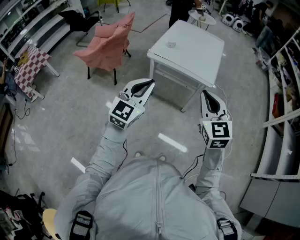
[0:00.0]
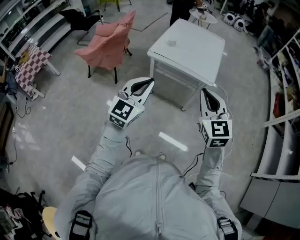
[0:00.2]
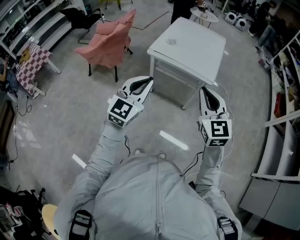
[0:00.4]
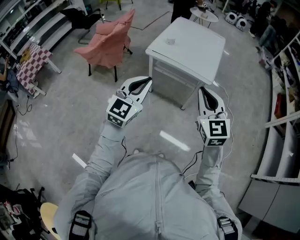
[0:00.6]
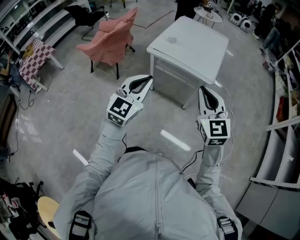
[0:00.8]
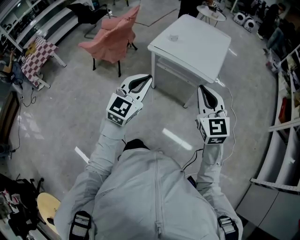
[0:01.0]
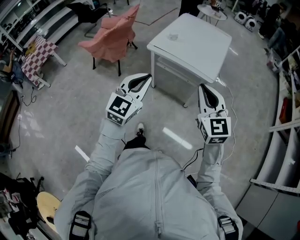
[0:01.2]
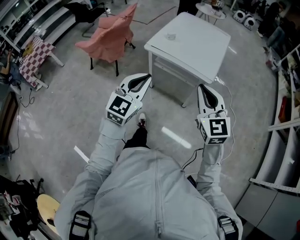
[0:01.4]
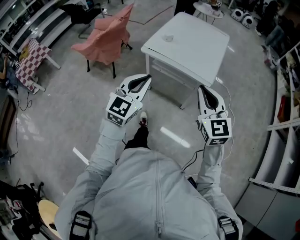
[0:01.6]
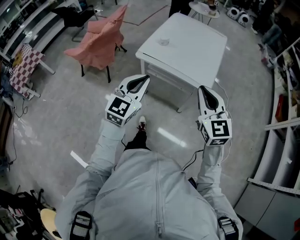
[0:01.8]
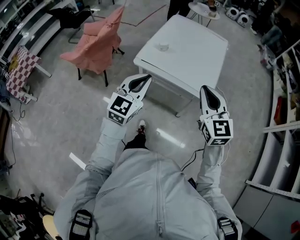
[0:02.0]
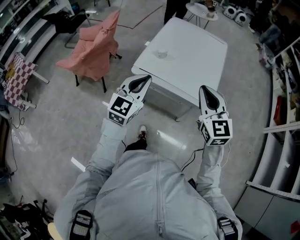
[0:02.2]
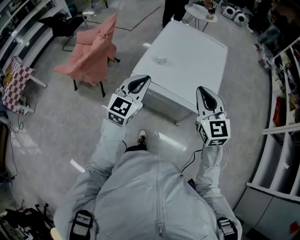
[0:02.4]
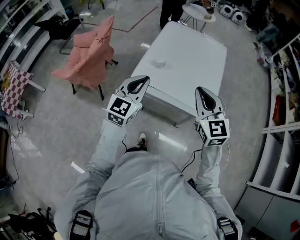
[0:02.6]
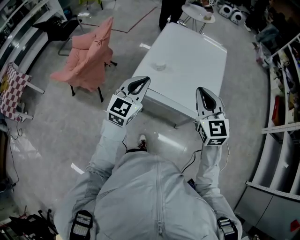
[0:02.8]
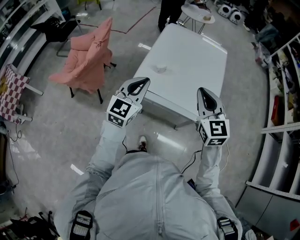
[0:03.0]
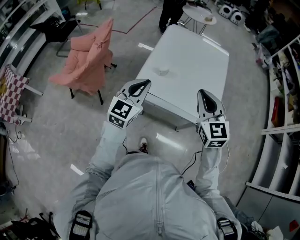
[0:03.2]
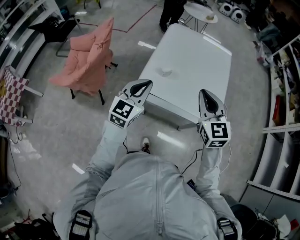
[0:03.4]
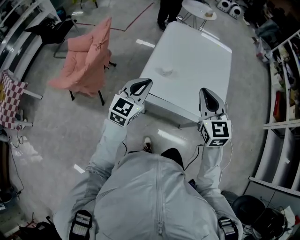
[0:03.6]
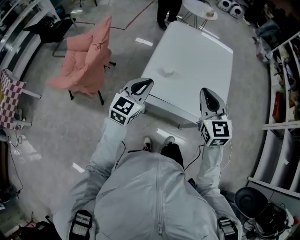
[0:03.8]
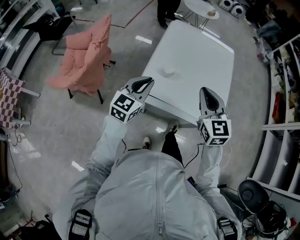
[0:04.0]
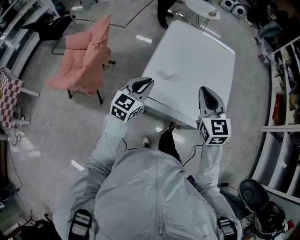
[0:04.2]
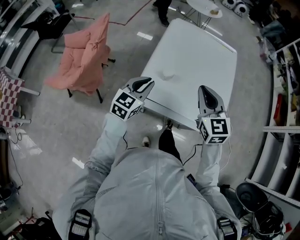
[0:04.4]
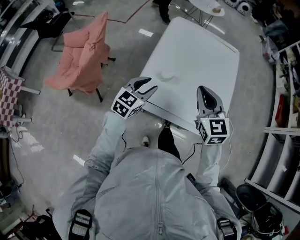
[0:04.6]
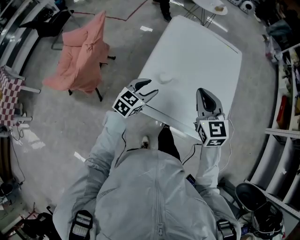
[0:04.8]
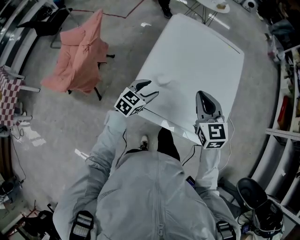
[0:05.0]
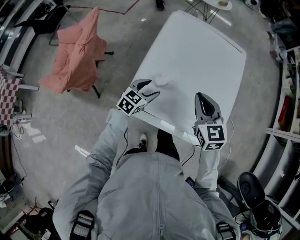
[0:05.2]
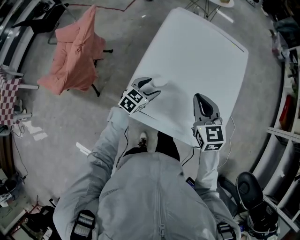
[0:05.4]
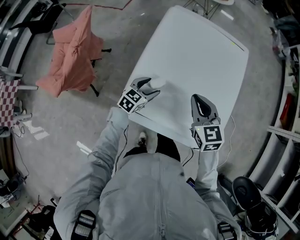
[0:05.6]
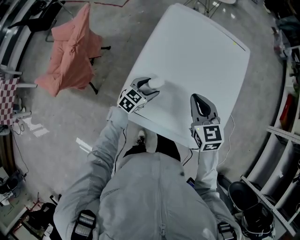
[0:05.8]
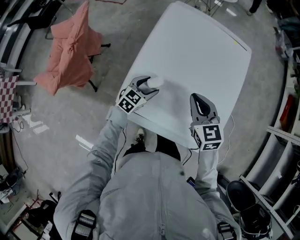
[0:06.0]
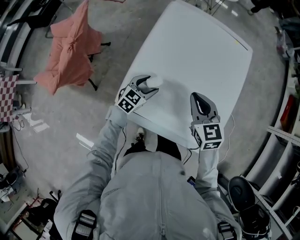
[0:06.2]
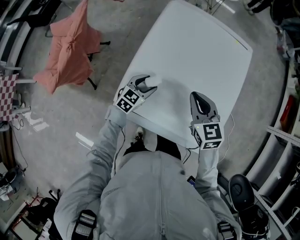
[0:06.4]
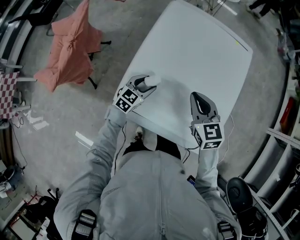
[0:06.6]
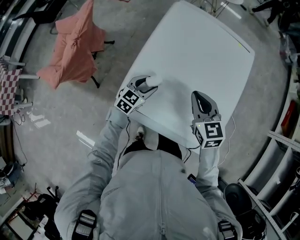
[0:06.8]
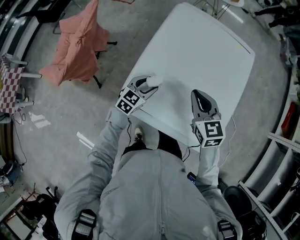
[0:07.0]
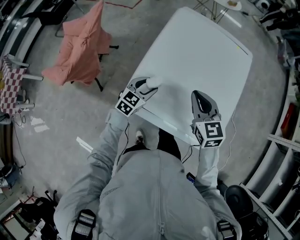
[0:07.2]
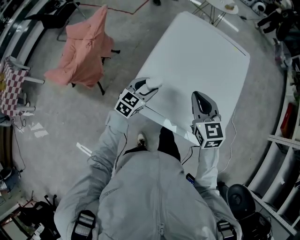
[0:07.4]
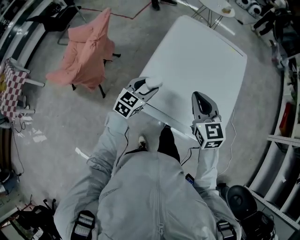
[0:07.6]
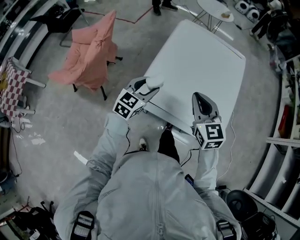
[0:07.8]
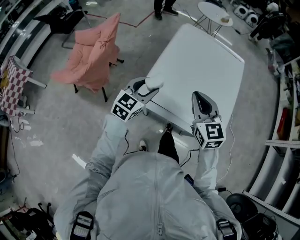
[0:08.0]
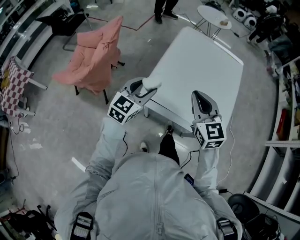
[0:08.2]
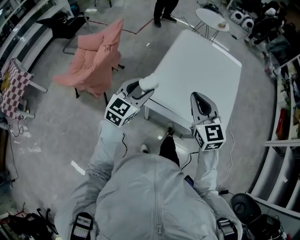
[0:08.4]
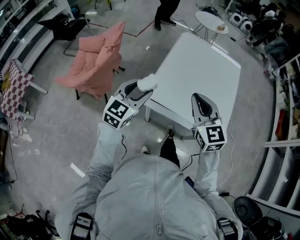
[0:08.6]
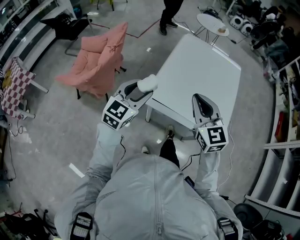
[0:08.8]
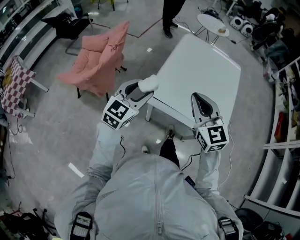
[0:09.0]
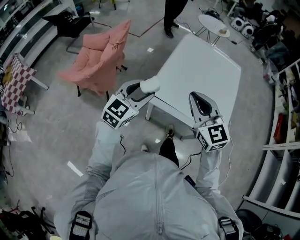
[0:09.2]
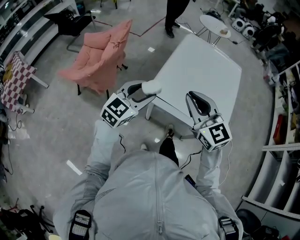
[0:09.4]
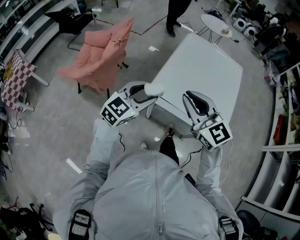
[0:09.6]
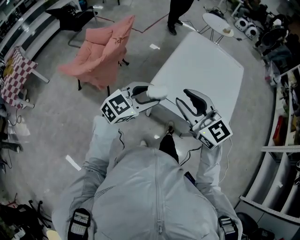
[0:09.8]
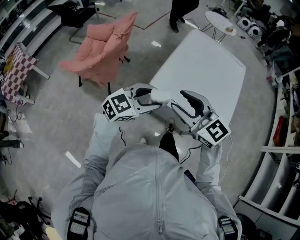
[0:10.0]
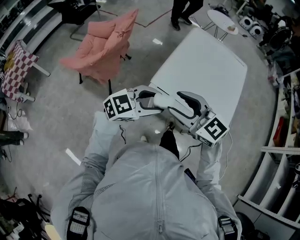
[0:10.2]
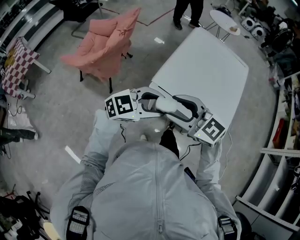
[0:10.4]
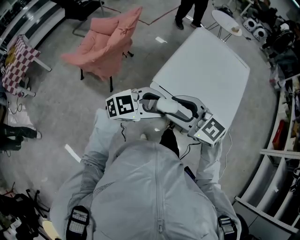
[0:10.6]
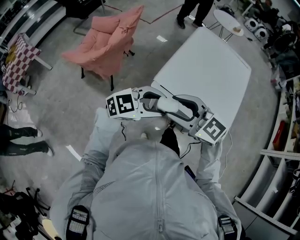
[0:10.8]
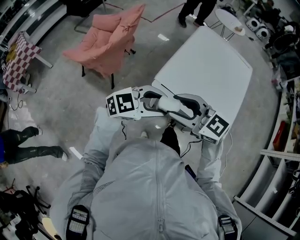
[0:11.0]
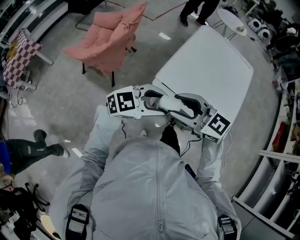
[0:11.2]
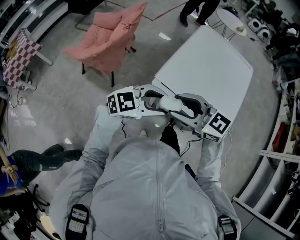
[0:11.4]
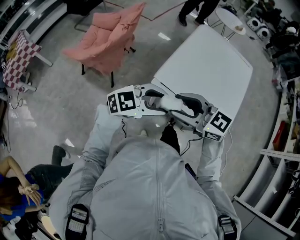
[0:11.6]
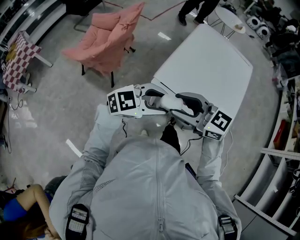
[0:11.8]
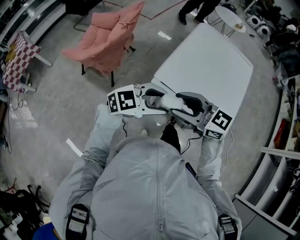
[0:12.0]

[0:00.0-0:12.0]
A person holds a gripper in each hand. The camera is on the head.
0:00.0 to 0:01.6: Both grippers move forward and to the right, about 15 cm.
0:01.6 to 0:03.0: The two grippers travel together, forward, about 40 cm.
0:03.0 to 0:04.4: The right gripper shifts roughly 15 cm forward and to the left, while the left gripper travels forward, downward and to the left by roughly 20 cm.
0:04.4 to 0:06.0: The right gripper moves forward and downward, some 25 cm. Meanwhile the left gripper shifts about 30 cm downward and forward, and opens its fingers.
0:06.0 to 0:07.6: The right gripper moves backward and upward, roughly 15 cm. Meanwhile the left gripper moves upward, backward and to the left, some 20 cm.
0:07.6 to 0:09.0: Both grippers move backward, upward and to the left, roughly 25 cm.
0:09.0 to 0:10.4: The right gripper changes place by approximately 15 cm, rotates about 40 degrees, and opens up. The left gripper moves approximately 10 cm, and changes its angle by about 40 degrees.
0:10.4 to 0:12.0: The grippers move only a little.

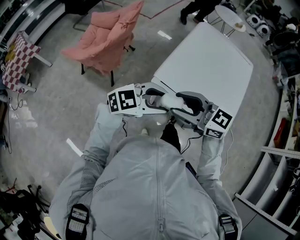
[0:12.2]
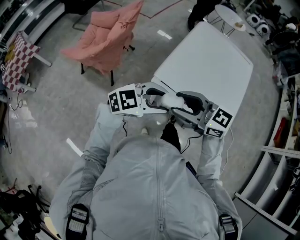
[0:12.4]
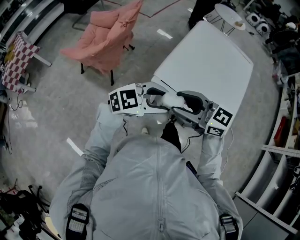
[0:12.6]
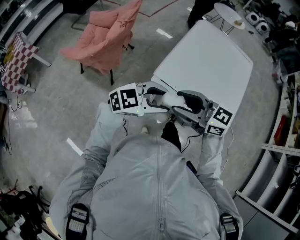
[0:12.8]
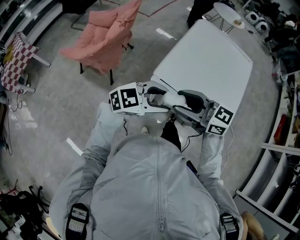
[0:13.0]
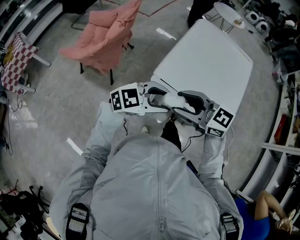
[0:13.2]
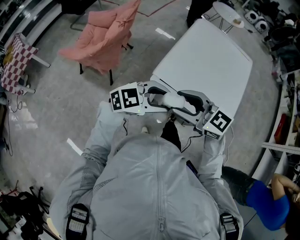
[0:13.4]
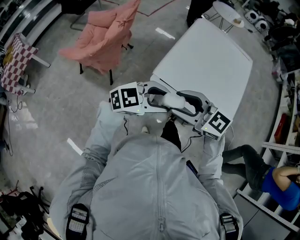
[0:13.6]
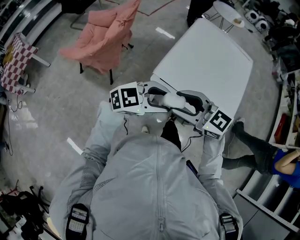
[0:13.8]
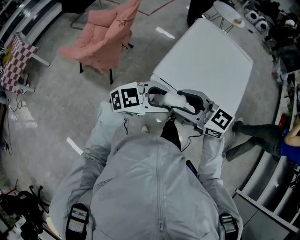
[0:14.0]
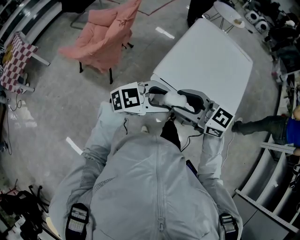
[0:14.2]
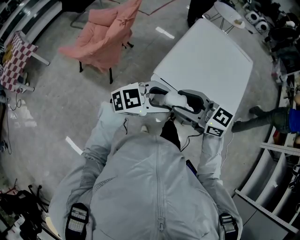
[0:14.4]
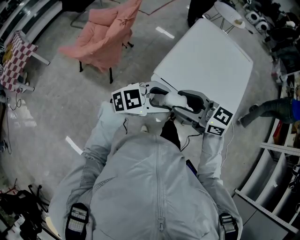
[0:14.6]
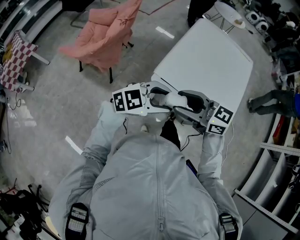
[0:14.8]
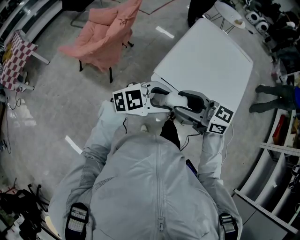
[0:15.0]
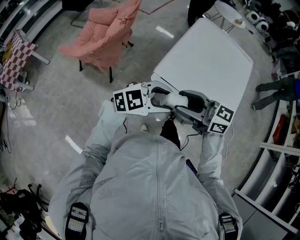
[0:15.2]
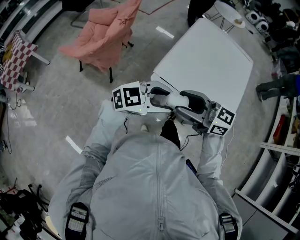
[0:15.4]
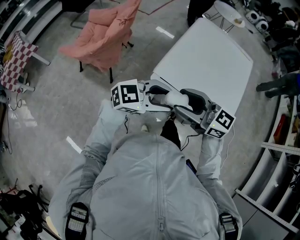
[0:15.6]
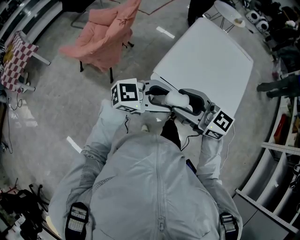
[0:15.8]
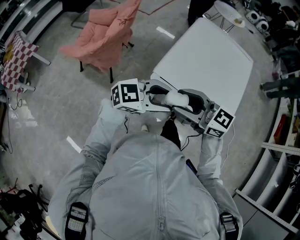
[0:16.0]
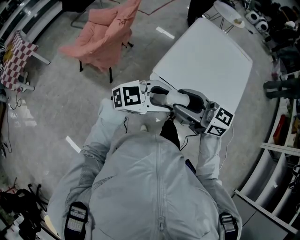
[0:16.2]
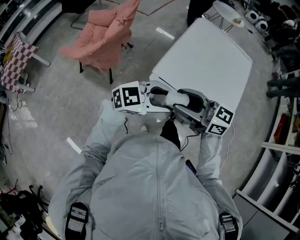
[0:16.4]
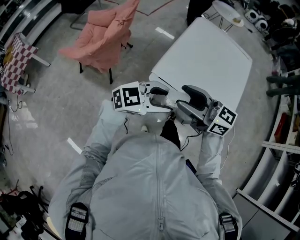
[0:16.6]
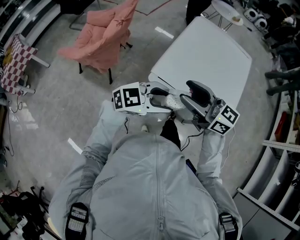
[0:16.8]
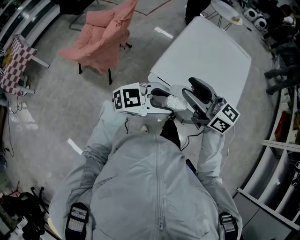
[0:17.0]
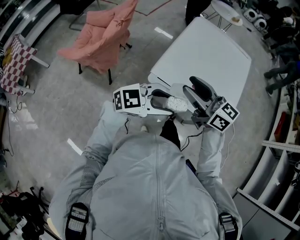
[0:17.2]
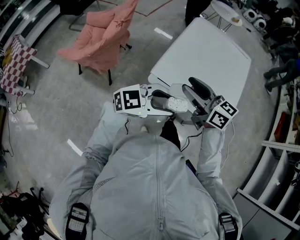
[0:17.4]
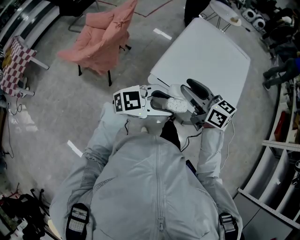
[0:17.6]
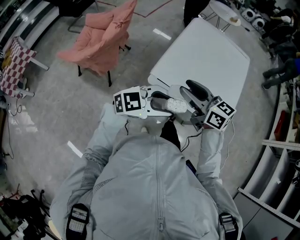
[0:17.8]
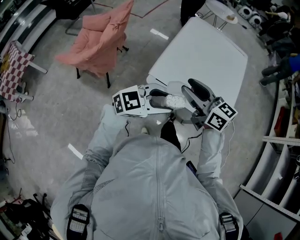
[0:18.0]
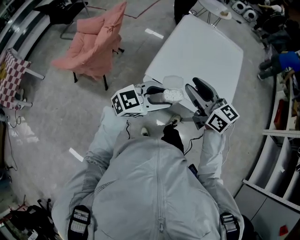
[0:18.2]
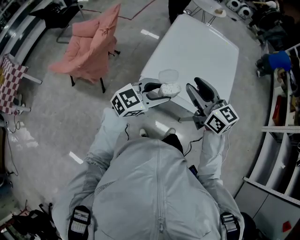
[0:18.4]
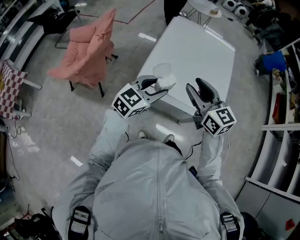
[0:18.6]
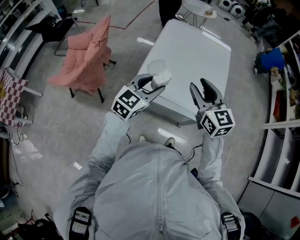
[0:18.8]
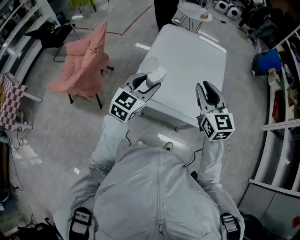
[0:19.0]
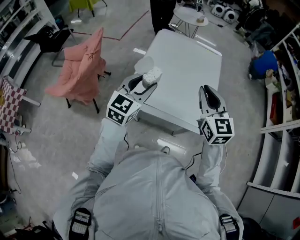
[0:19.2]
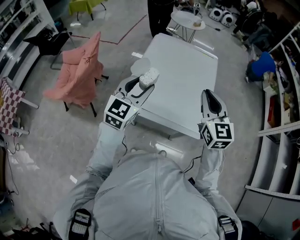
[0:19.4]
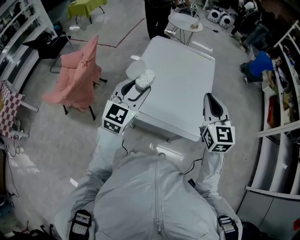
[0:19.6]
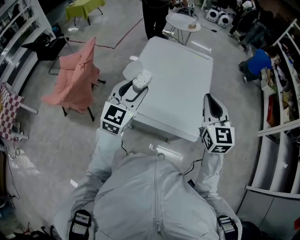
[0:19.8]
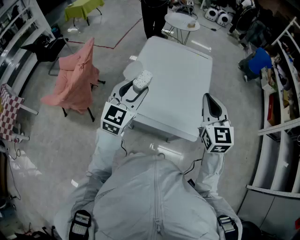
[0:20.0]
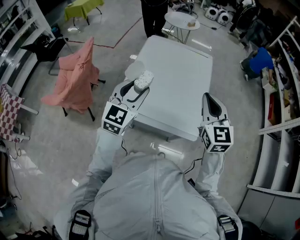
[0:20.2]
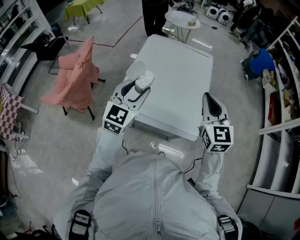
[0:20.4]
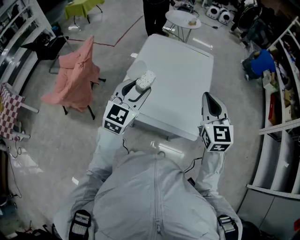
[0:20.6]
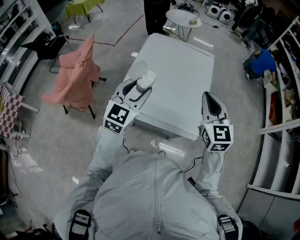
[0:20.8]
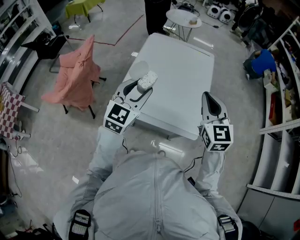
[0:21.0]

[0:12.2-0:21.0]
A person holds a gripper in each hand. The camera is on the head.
0:12.2 to 0:13.6: The grippers stay close to where they were, moving slightly.
0:13.6 to 0:15.2: The right gripper swivels about 20 degrees.
0:15.2 to 0:16.6: The grippers stay close to where they were, moving slightly.
0:16.6 to 0:18.0: The right gripper changes place by about 5 cm, and changes its angle by about 20 degrees.
0:18.0 to 0:19.6: The right gripper ends up roughly 30 cm from where it was, rotates some 50 degrees, and closes its fingers. The left gripper changes place by about 20 cm, and turns by roughly 40 degrees.
0:19.6 to 0:21.0: The grippers move only a little.

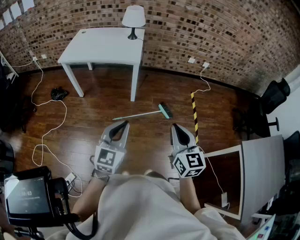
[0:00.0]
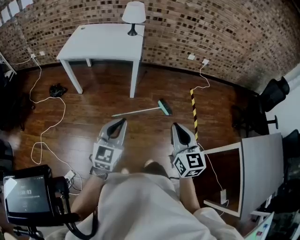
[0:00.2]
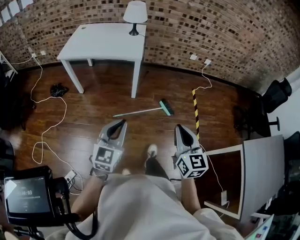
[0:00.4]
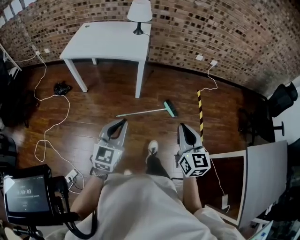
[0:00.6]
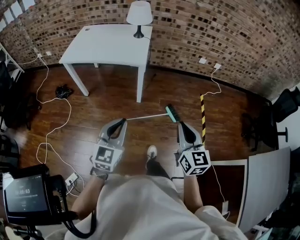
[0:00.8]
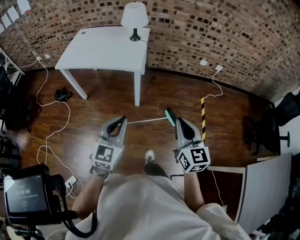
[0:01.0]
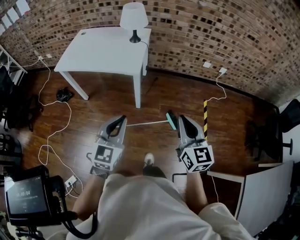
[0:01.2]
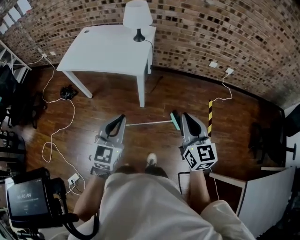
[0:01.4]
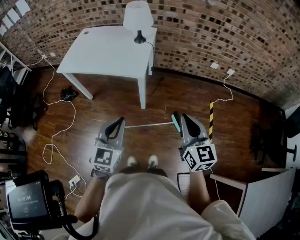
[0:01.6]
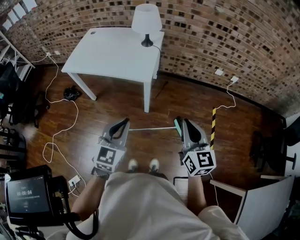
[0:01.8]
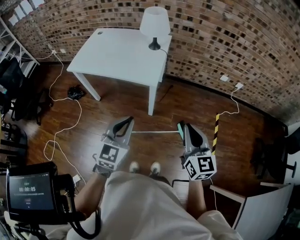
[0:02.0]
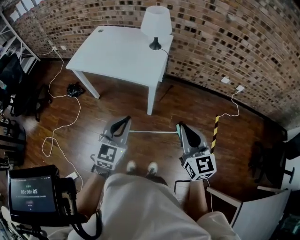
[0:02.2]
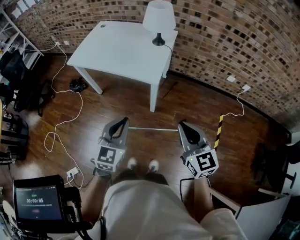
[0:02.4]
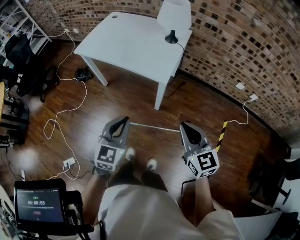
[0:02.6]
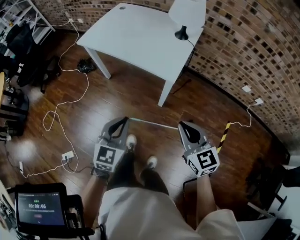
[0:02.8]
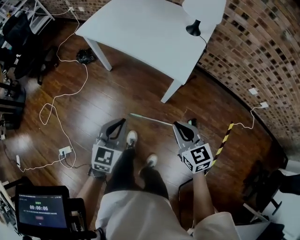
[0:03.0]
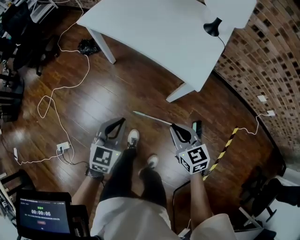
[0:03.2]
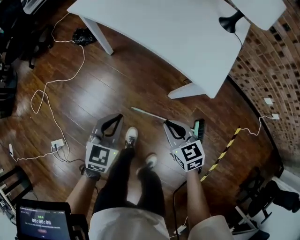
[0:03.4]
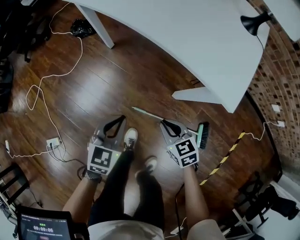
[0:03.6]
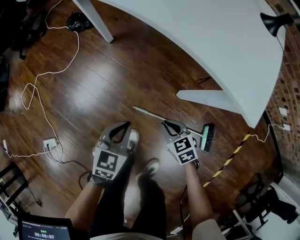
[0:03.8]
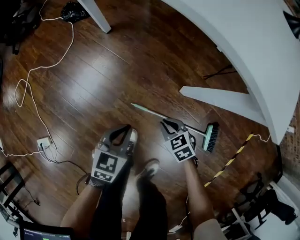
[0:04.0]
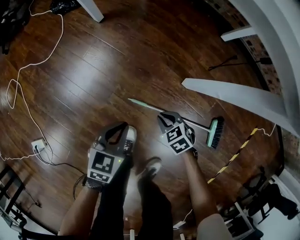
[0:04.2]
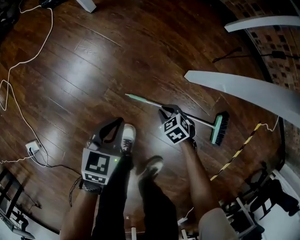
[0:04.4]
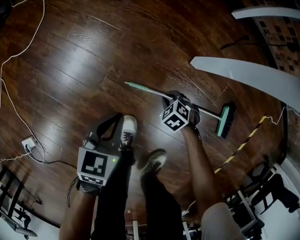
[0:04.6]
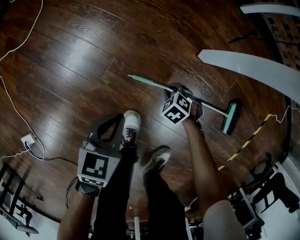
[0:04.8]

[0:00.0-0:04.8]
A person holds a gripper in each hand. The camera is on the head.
0:00.0 to 0:01.6: Both grippers travel together forward, about 30 cm.
0:01.6 to 0:03.2: The two grippers go about 25 cm downward. The left gripper turns by approximately 30 degrees, while the right gripper swivels approximately 50 degrees.
0:03.2 to 0:04.8: The two grippers go some 60 cm downward. The right gripper angles its fingers downward, by some 50 degrees, while the left gripper turns by approximately 30 degrees.
